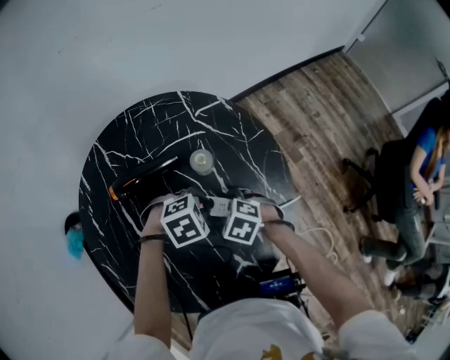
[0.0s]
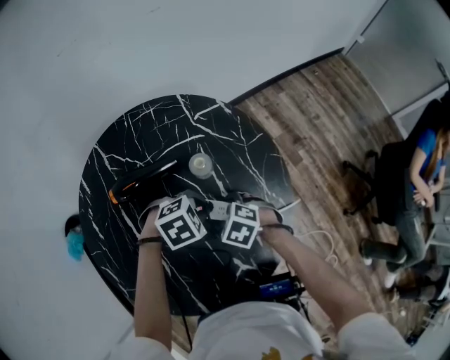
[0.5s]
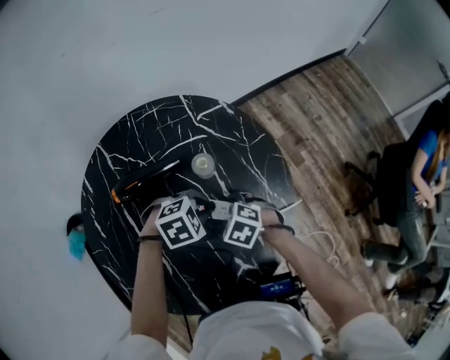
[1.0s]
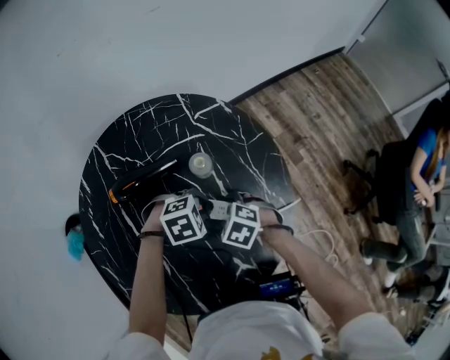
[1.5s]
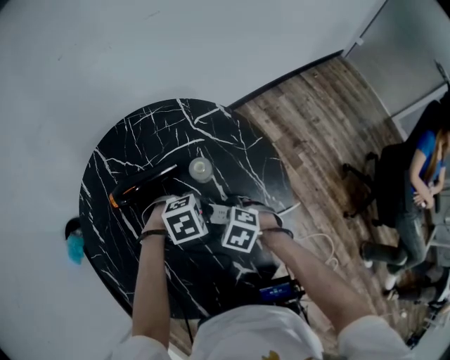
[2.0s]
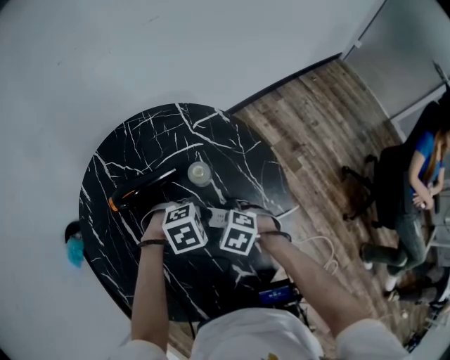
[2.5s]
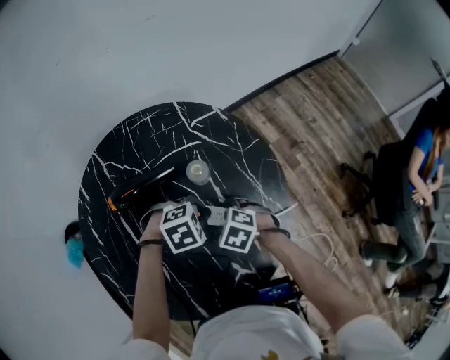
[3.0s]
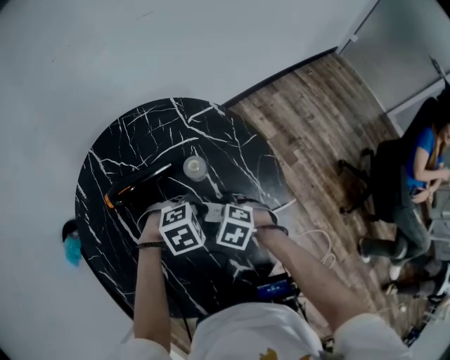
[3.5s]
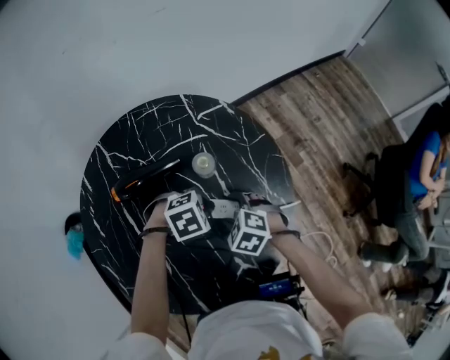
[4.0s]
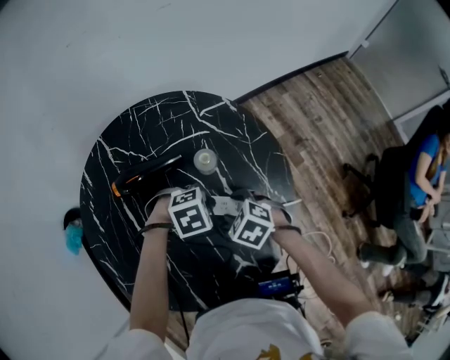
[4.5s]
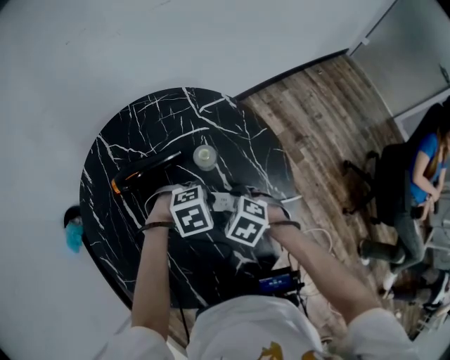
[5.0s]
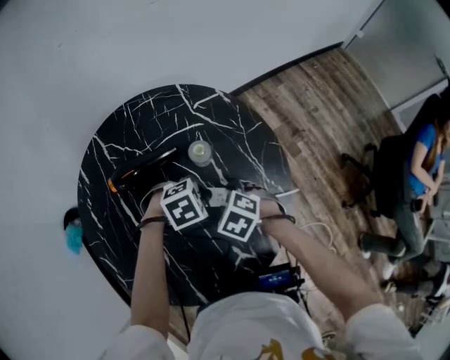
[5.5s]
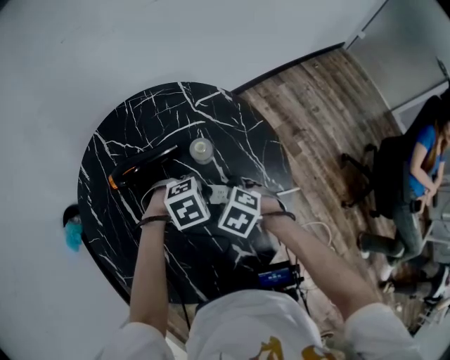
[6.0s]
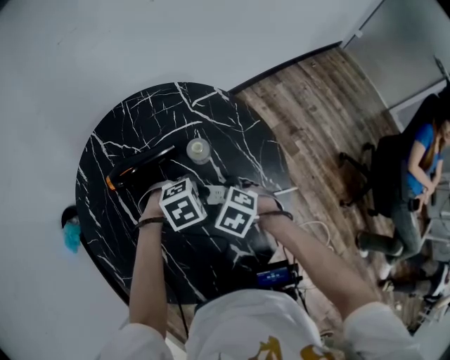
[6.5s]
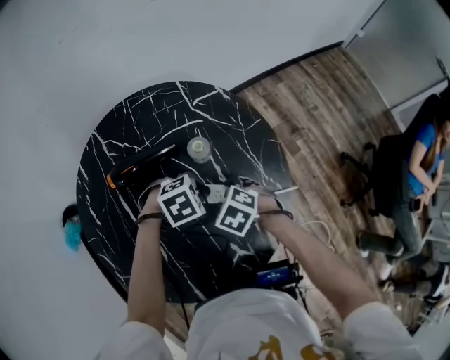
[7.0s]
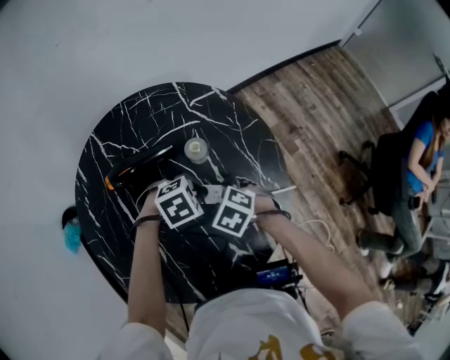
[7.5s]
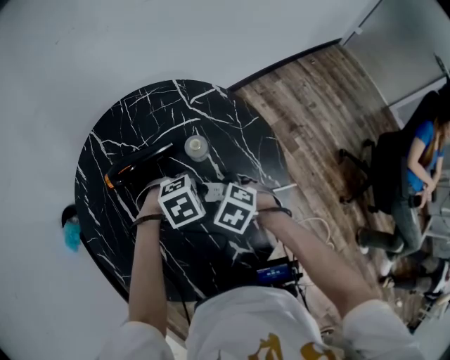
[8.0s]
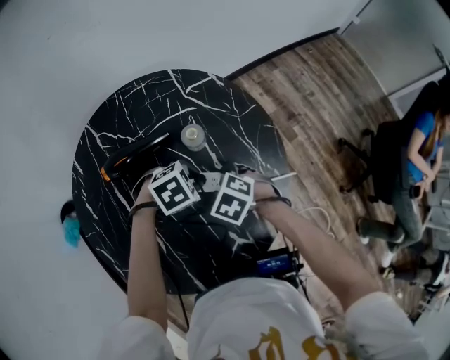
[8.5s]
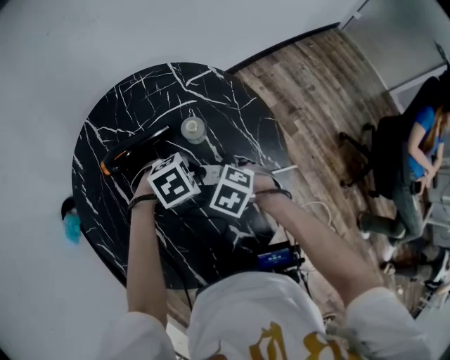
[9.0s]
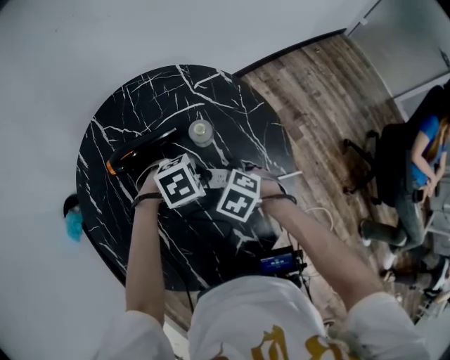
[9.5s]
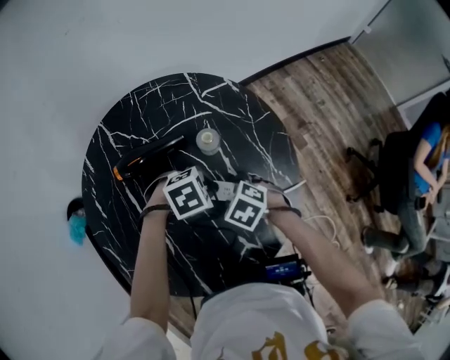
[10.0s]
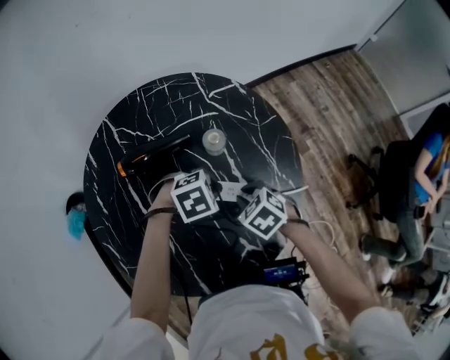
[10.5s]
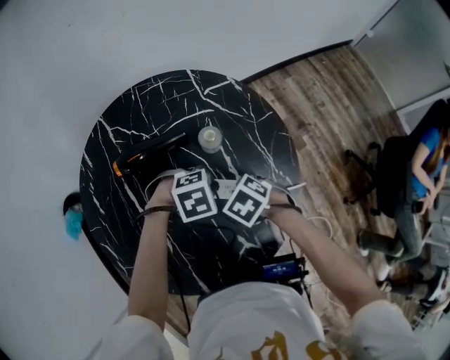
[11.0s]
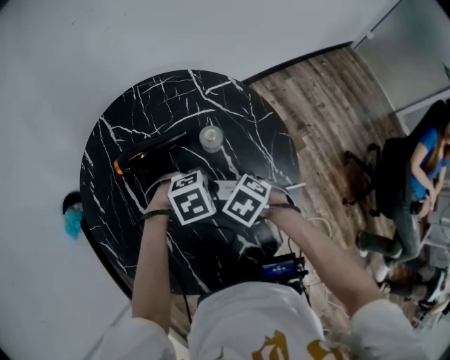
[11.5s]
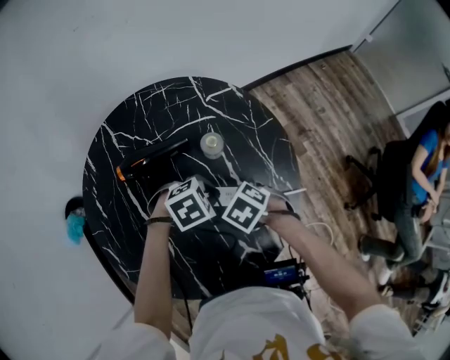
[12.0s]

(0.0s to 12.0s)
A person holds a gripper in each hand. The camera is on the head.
0.0s - 10.0s: There are only small adjustments of the grippers.
10.0s - 12.0s: The right gripper closes its fingers.

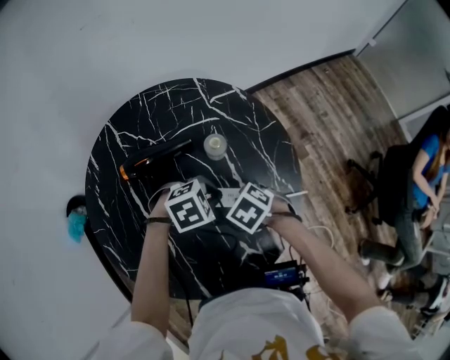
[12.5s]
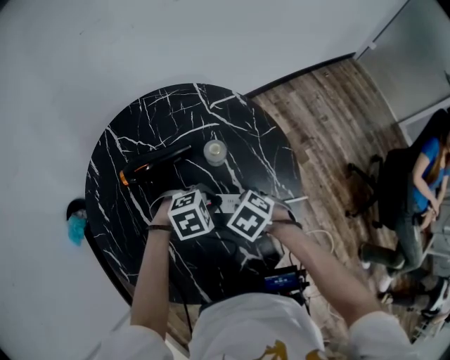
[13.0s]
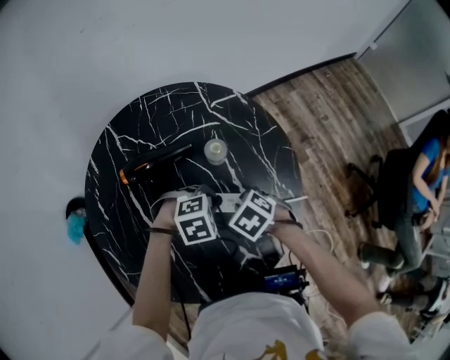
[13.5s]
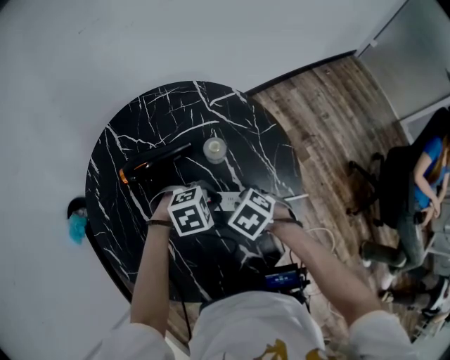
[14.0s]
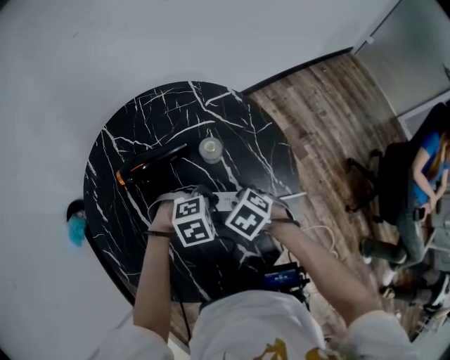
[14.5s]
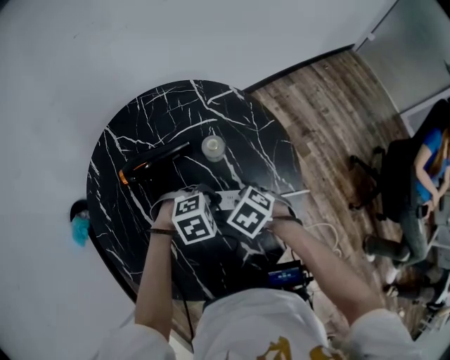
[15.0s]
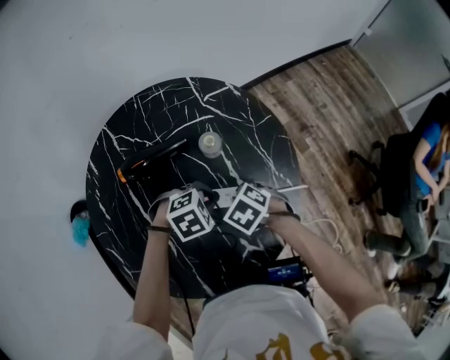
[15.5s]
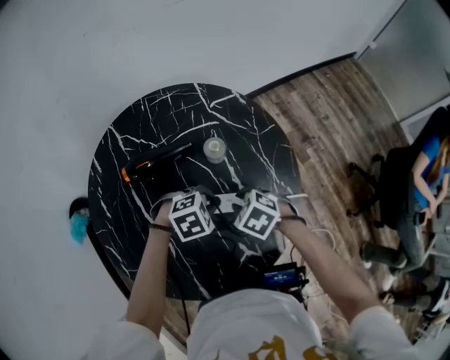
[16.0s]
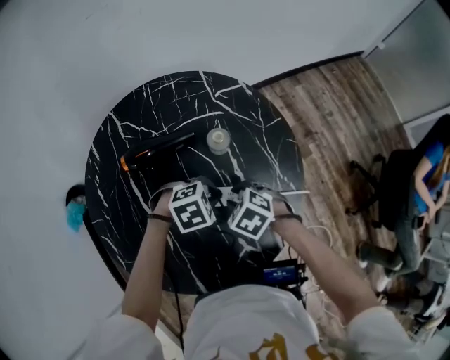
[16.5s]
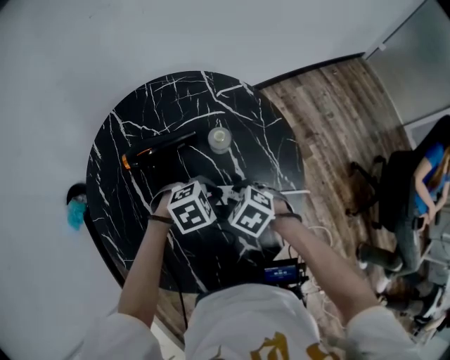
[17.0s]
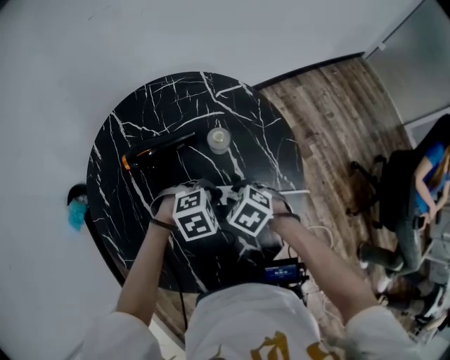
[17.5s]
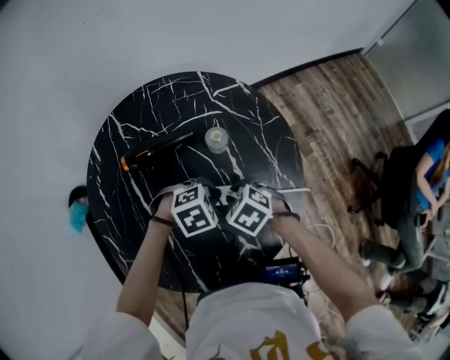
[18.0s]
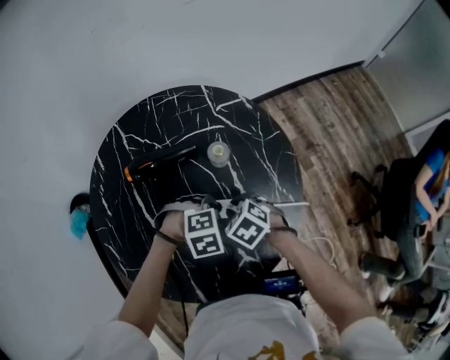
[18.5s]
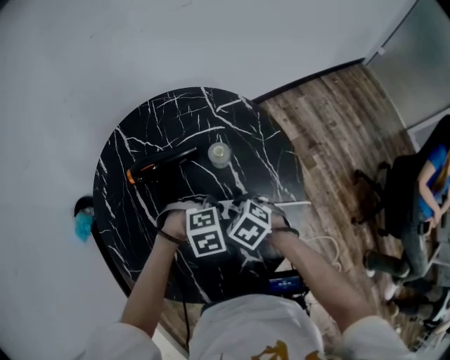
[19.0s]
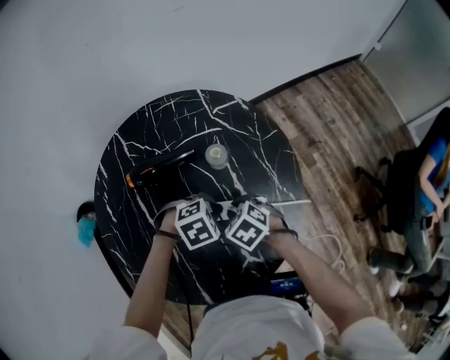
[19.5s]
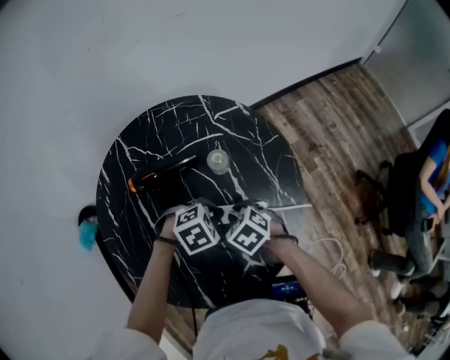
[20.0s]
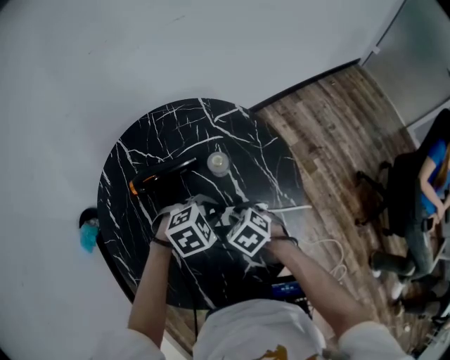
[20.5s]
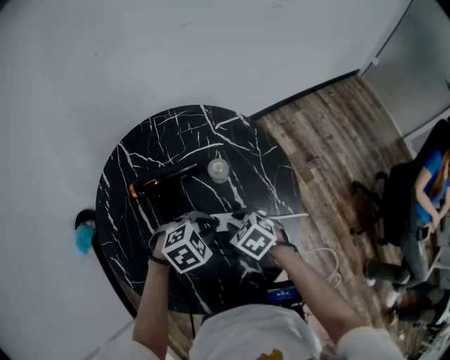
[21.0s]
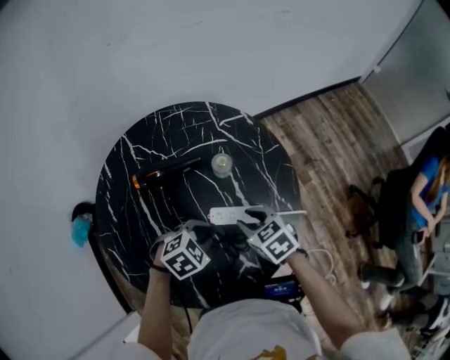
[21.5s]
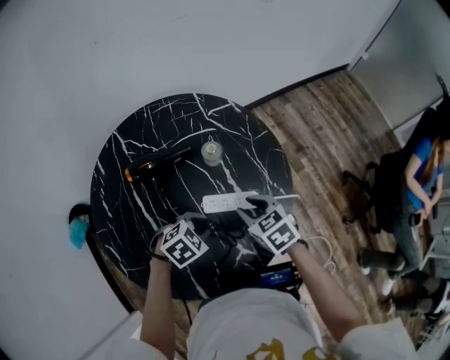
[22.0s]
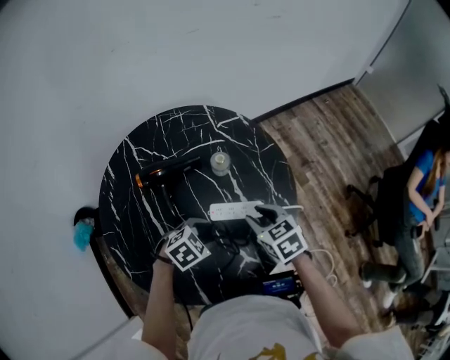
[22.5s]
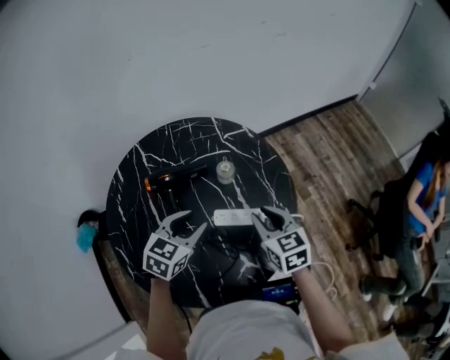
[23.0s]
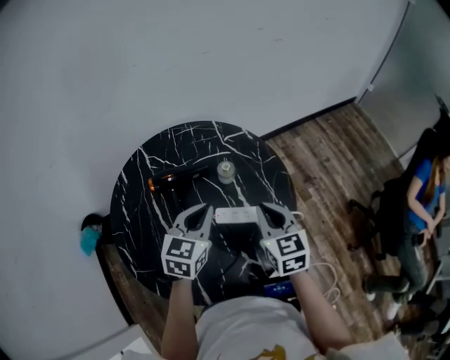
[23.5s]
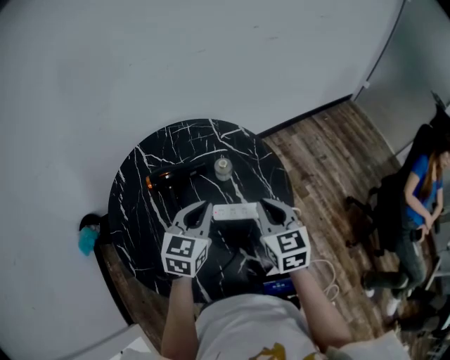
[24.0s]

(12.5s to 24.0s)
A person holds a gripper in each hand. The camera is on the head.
12.5s - 20.0s: The grippers move only a little.
20.0s - 22.0s: The right gripper goes some 5 cm upward. Meanwhile the left gripper changes place by some 5 cm.
22.0s - 24.0s: The grippers both shift upward by approximately 15 cm. The left gripper tips its fingers upward by some 40 degrees, and opens and closes again, while the right gripper rotates roughly 30 degrees, and closes.

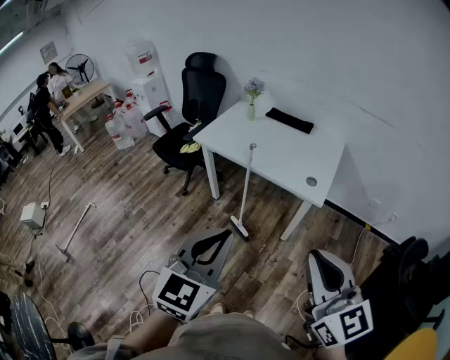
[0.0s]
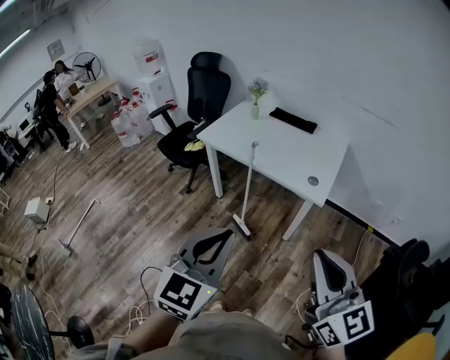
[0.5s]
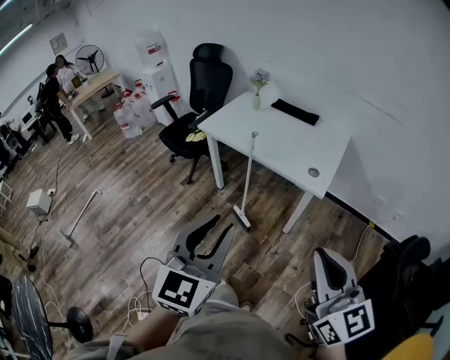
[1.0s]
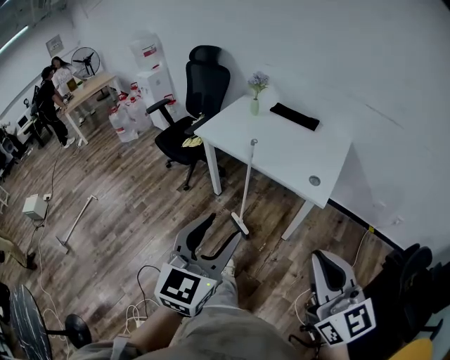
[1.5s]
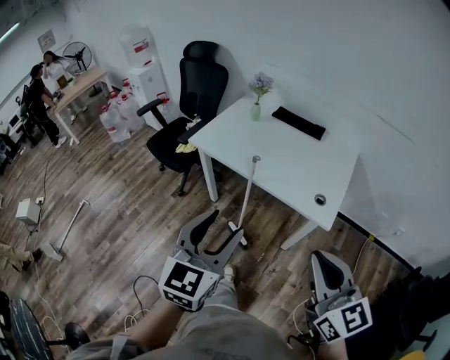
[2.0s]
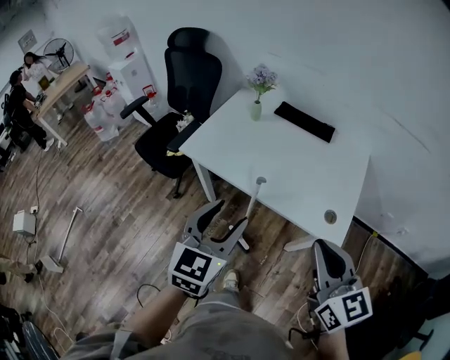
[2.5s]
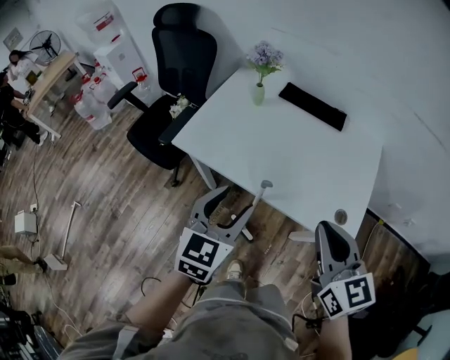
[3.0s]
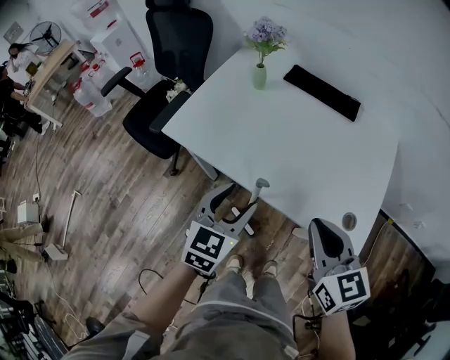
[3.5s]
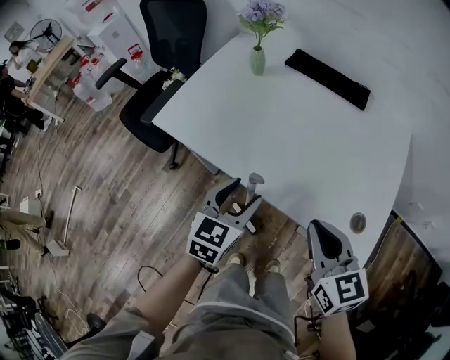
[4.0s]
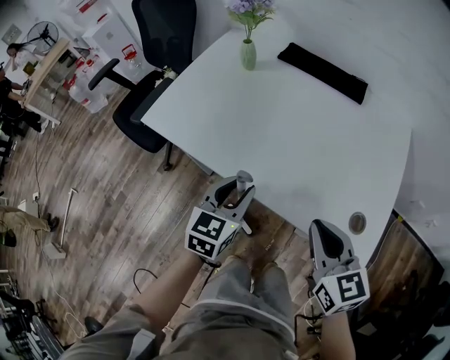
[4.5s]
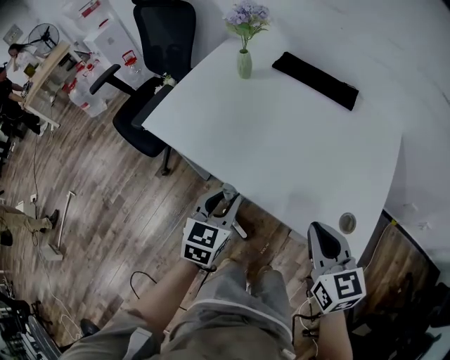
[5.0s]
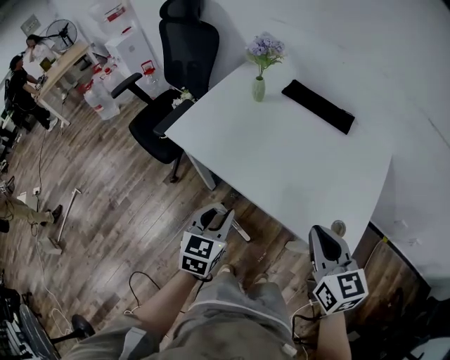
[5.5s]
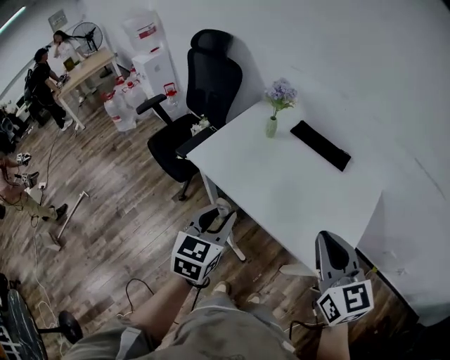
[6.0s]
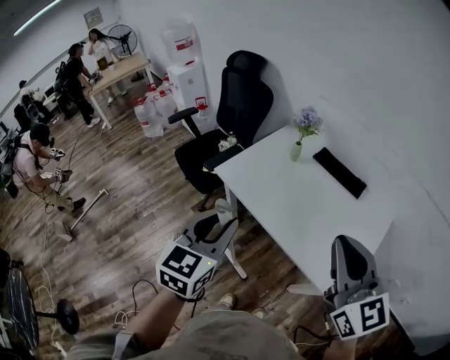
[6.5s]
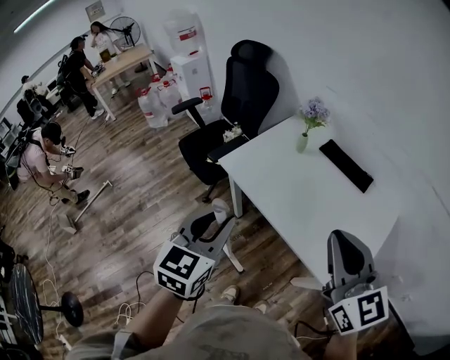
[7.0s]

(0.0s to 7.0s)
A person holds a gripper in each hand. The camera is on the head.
0.0s - 2.0s: Both grippers move forward, roughly 15 cm. The left gripper opens.
2.0s - 3.5s: Both grippers move forward and downward, approximately 35 cm.
3.5s - 5.0s: The left gripper shifts approximately 10 cm downward, and closes. The right gripper shifts roughly 10 cm downward and to the right.
5.0s - 7.0s: Both grippers move upward, about 30 cm. The right gripper swivels some 30 degrees.
